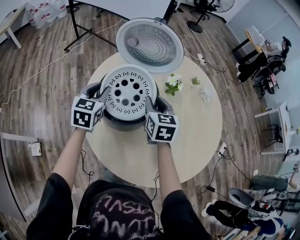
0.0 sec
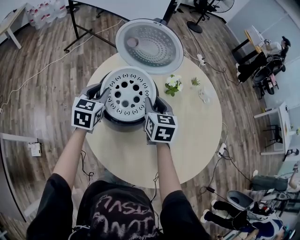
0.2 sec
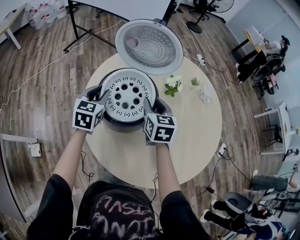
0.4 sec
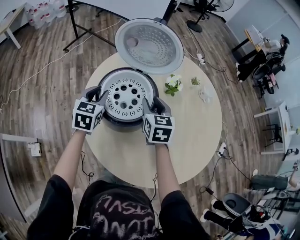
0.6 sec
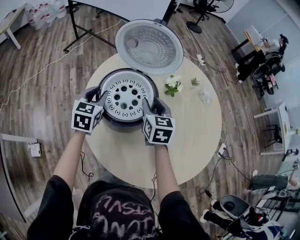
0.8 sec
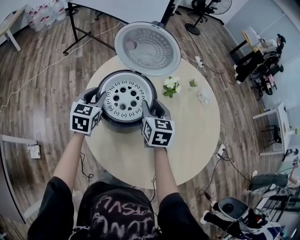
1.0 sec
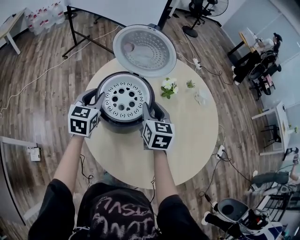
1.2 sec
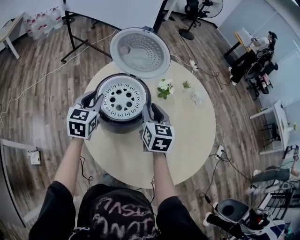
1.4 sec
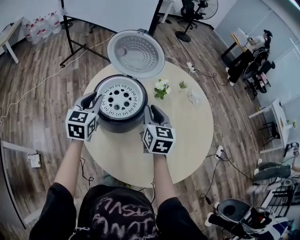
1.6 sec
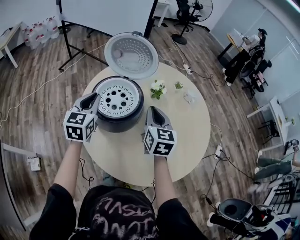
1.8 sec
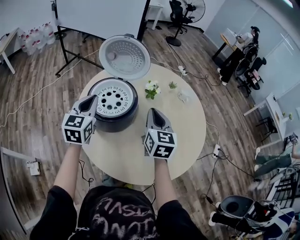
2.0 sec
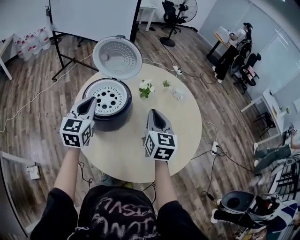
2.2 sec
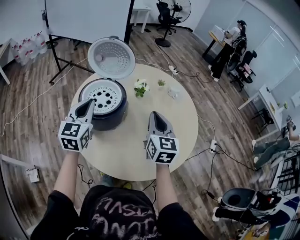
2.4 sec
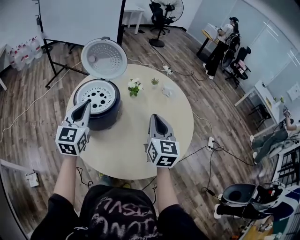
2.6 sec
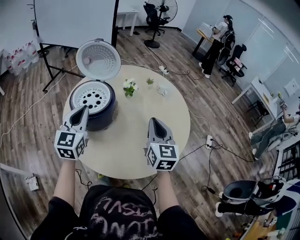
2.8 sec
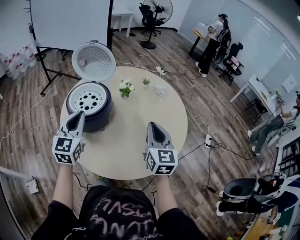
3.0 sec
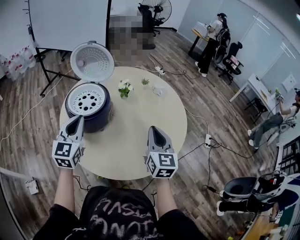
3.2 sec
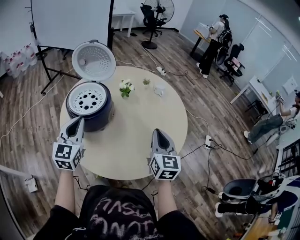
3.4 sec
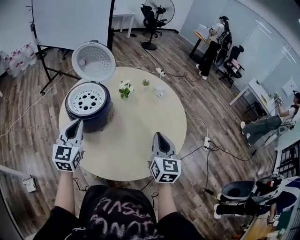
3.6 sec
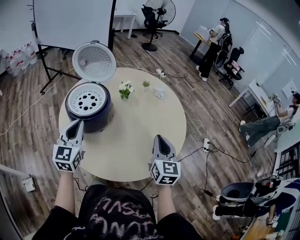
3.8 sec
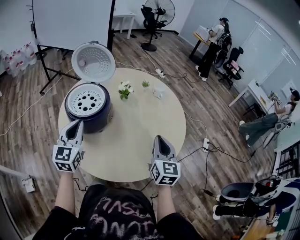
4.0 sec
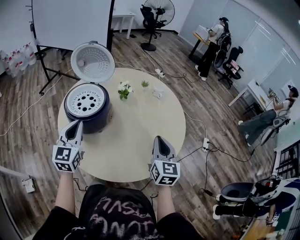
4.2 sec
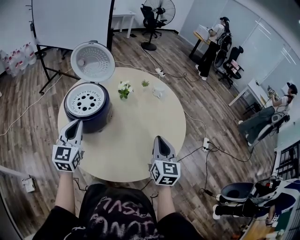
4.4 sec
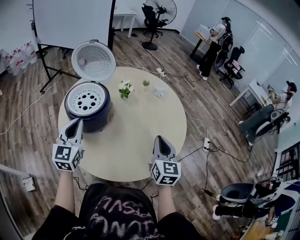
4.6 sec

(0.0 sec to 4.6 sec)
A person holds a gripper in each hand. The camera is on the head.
0.0 sec - 1.6 sec: Both grippers move upward, about 5 cm.
1.6 sec - 3.0 sec: The left gripper moves backward, to the right and upward, about 20 cm. Meanwhile the right gripper shifts approximately 25 cm to the right and backward.
3.0 sec - 4.6 sec: The right gripper shifts roughly 5 cm to the right.

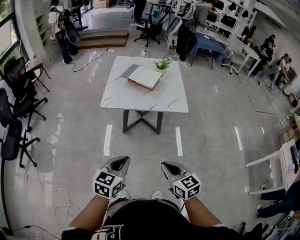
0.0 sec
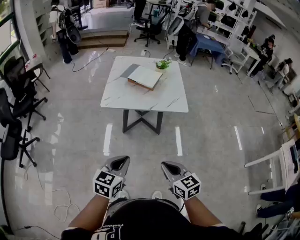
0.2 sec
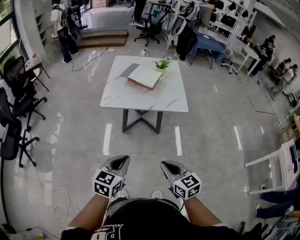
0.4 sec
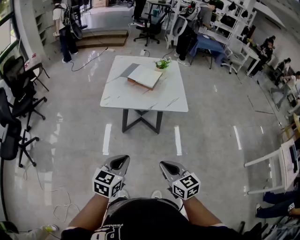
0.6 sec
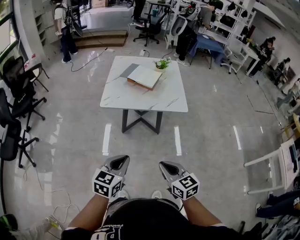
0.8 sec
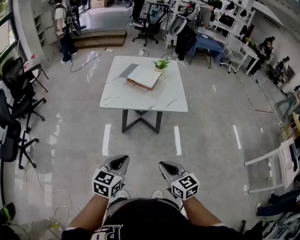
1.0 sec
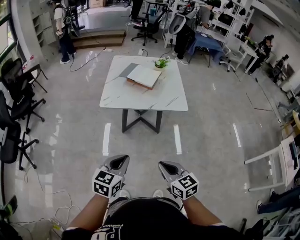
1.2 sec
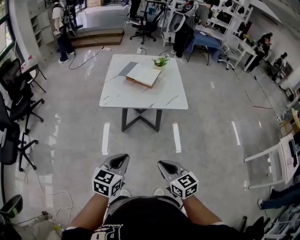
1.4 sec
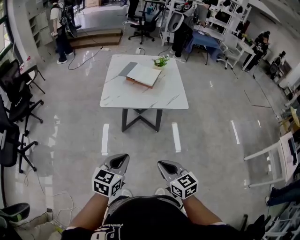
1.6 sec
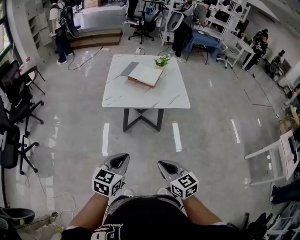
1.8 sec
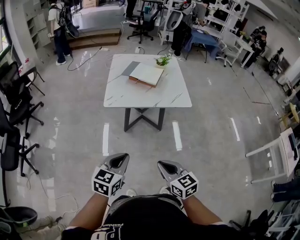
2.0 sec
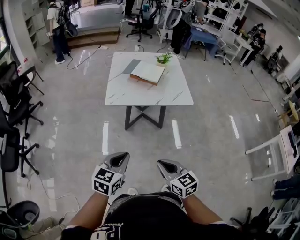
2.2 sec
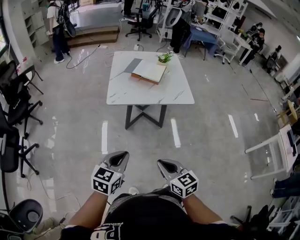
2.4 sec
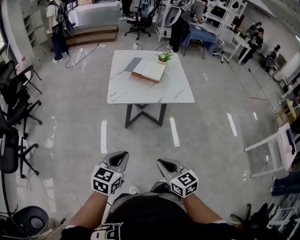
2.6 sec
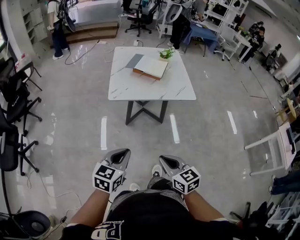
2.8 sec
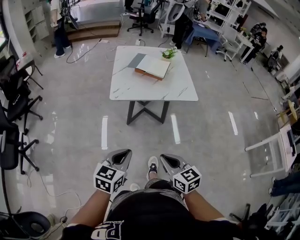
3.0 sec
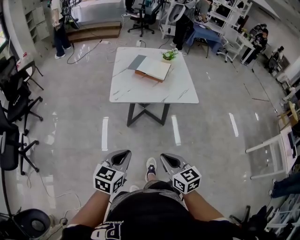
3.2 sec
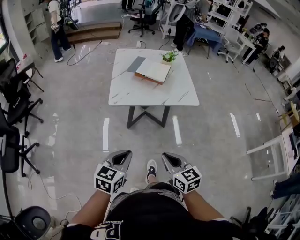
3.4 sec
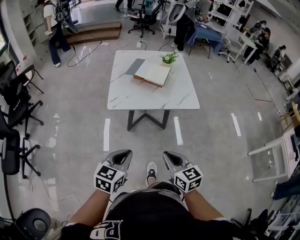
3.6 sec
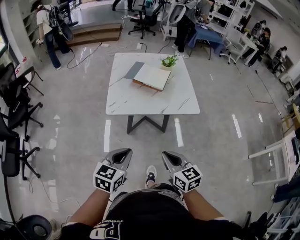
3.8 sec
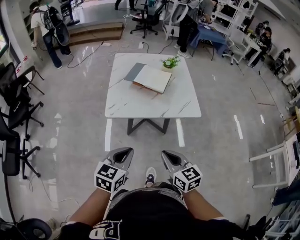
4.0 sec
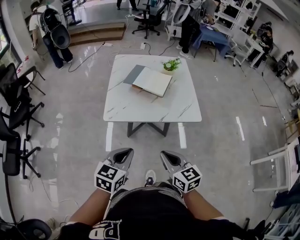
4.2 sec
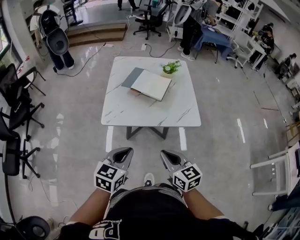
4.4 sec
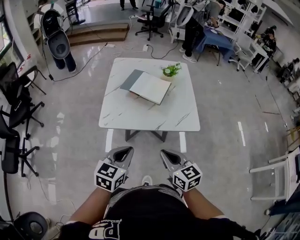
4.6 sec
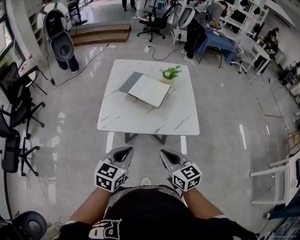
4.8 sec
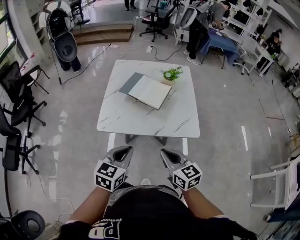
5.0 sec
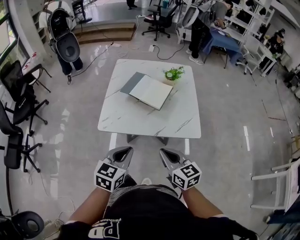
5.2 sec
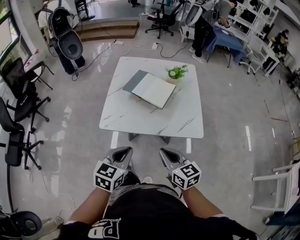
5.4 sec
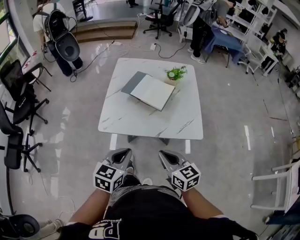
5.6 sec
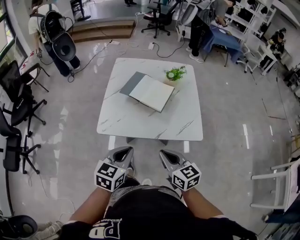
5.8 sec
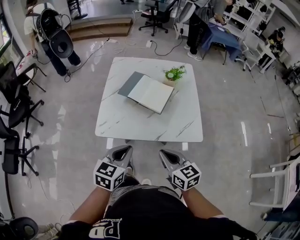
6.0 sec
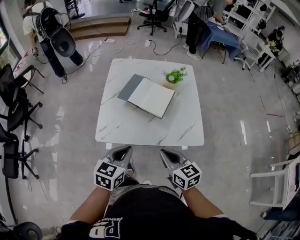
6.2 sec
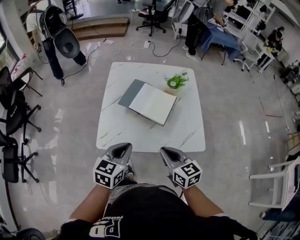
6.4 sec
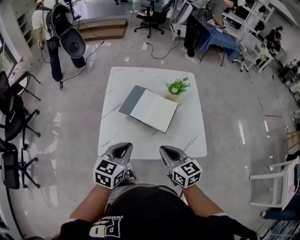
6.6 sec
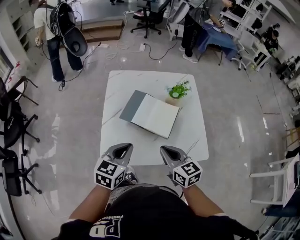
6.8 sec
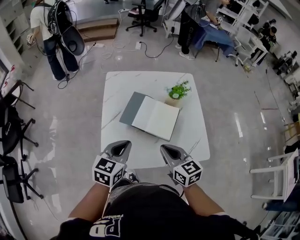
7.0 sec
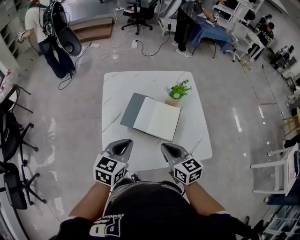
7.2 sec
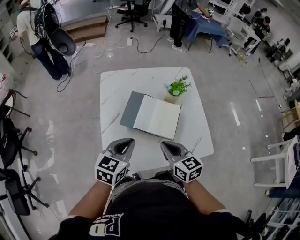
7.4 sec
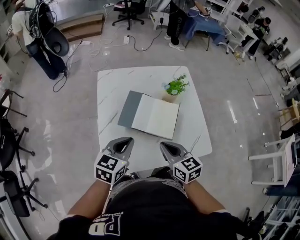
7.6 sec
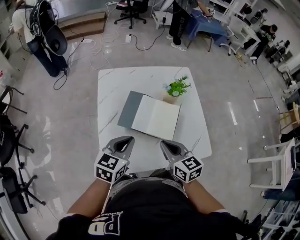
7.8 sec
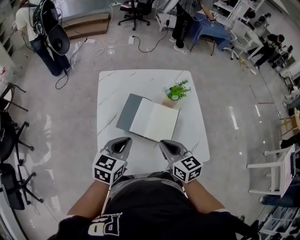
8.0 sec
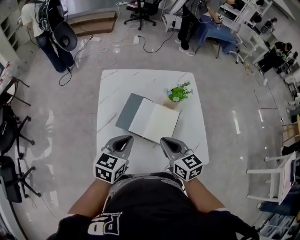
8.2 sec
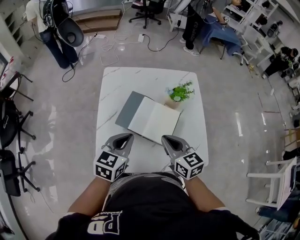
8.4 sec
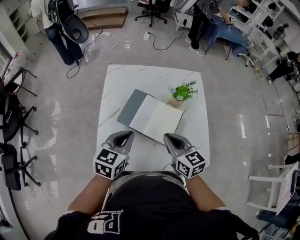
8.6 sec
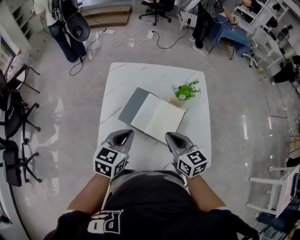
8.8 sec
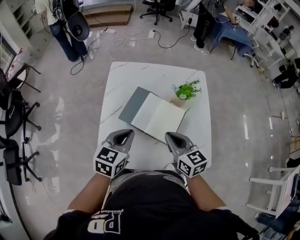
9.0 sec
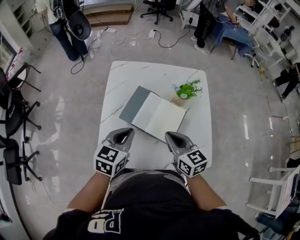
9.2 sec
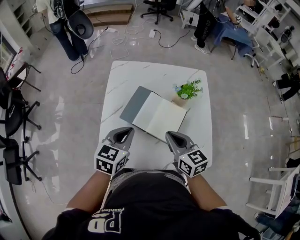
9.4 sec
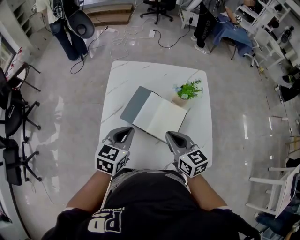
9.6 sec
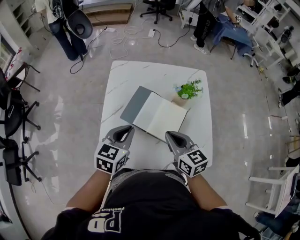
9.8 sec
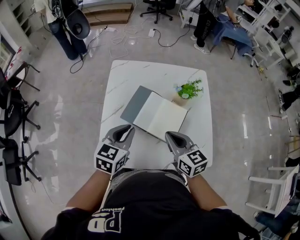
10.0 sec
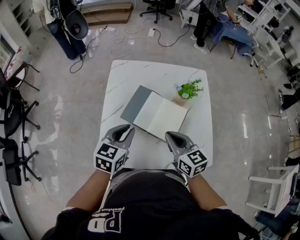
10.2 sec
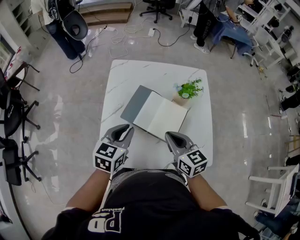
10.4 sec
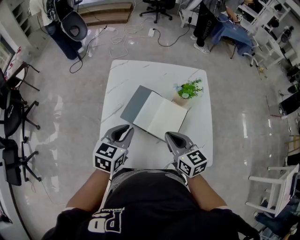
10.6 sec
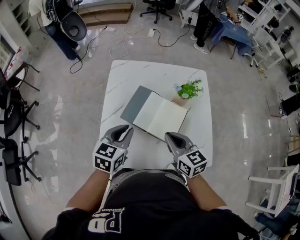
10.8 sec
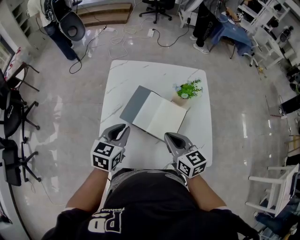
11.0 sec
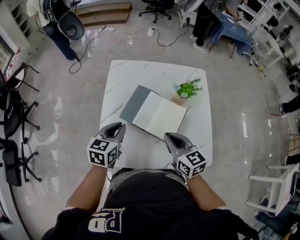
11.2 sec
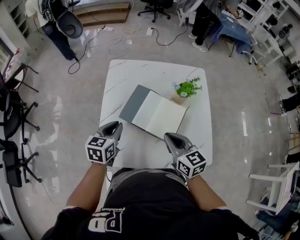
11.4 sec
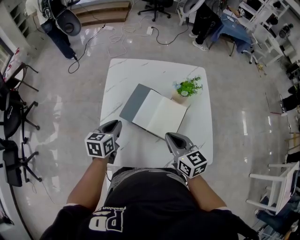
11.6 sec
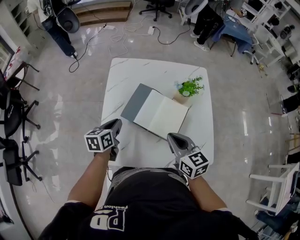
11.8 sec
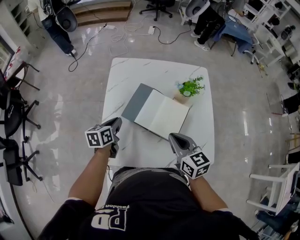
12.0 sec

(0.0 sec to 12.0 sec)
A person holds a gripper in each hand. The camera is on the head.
0.0 sec - 1.6 sec: There are only small adjustments of the grippers.
1.6 sec - 3.0 sec: The grippers both shift to the left by about 10 cm.
3.0 sec - 4.4 sec: Both grippers move forward, about 20 cm.
4.4 sec - 6.0 sec: The two grippers go some 10 cm forward.
6.0 sec - 7.6 sec: Both grippers move forward, some 25 cm.
7.6 sec - 9.0 sec: The right gripper moves forward, roughly 5 cm.
9.0 sec - 10.4 sec: The grippers make only small movements.
10.4 sec - 12.0 sec: The left gripper heads downward, to the left and forward, covering approximately 15 cm, and swivels some 30 degrees.

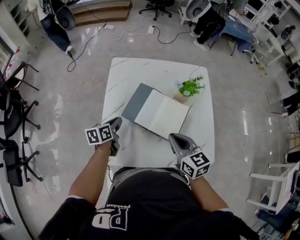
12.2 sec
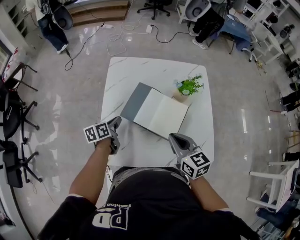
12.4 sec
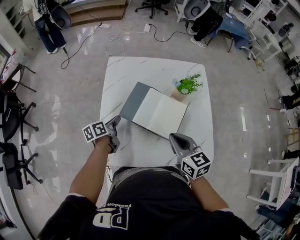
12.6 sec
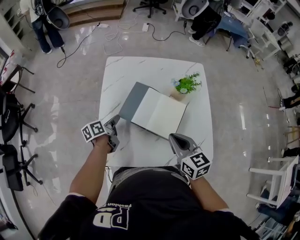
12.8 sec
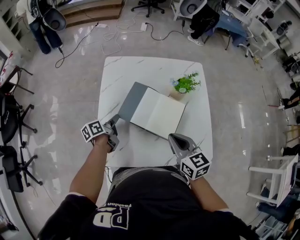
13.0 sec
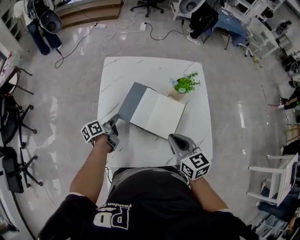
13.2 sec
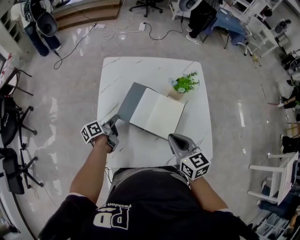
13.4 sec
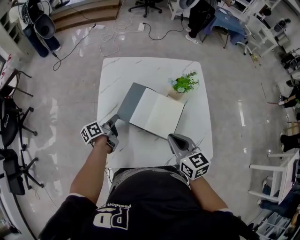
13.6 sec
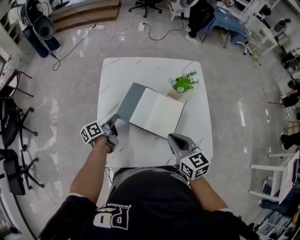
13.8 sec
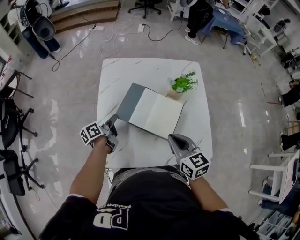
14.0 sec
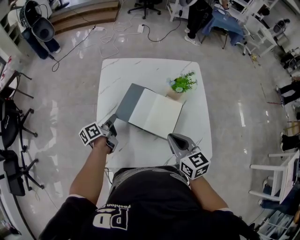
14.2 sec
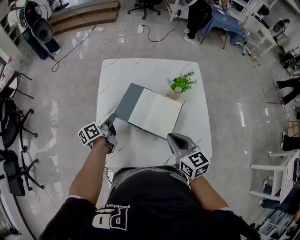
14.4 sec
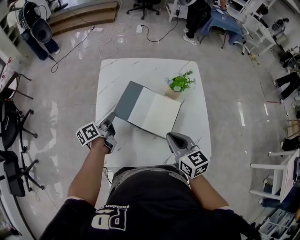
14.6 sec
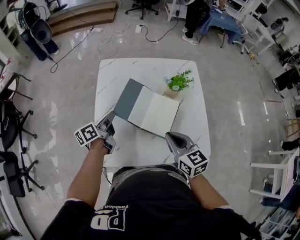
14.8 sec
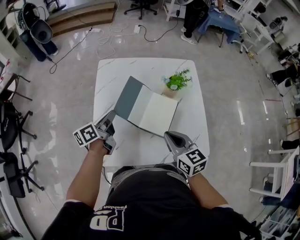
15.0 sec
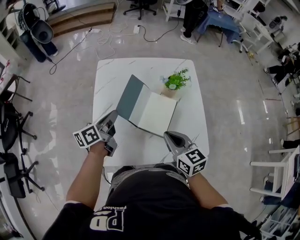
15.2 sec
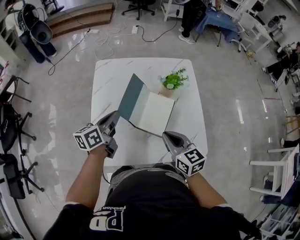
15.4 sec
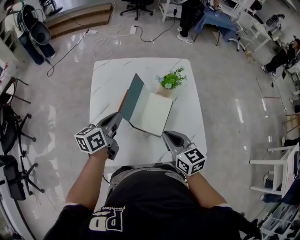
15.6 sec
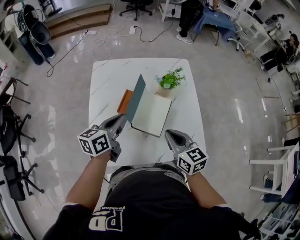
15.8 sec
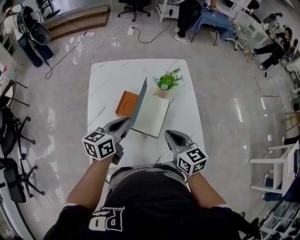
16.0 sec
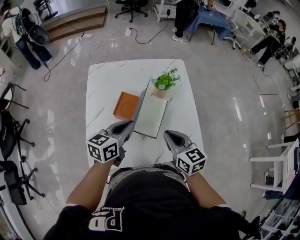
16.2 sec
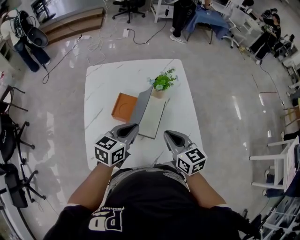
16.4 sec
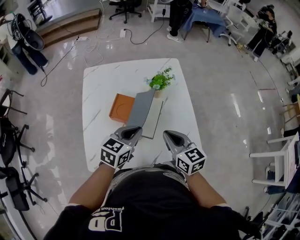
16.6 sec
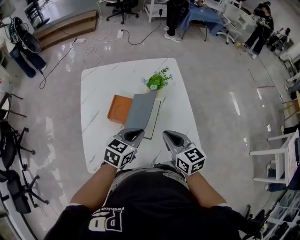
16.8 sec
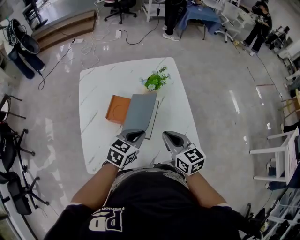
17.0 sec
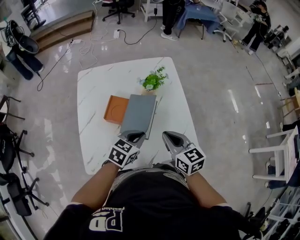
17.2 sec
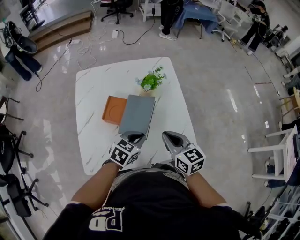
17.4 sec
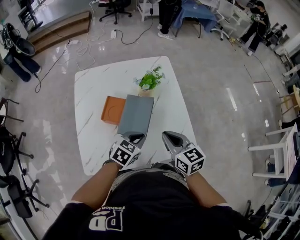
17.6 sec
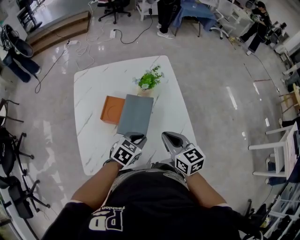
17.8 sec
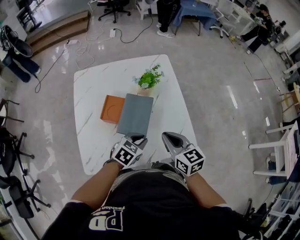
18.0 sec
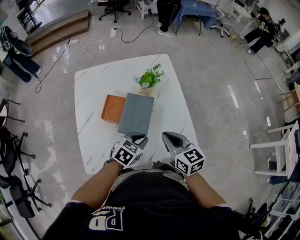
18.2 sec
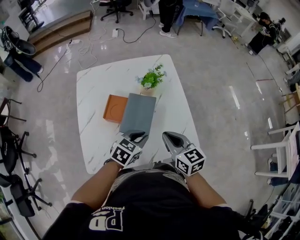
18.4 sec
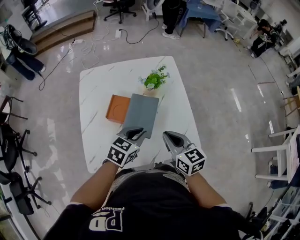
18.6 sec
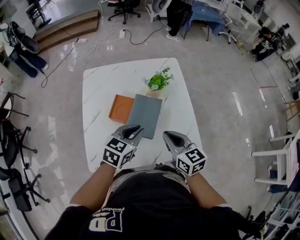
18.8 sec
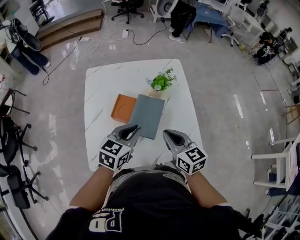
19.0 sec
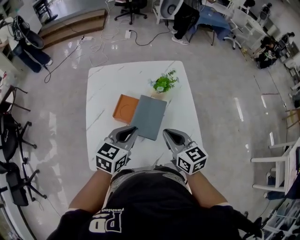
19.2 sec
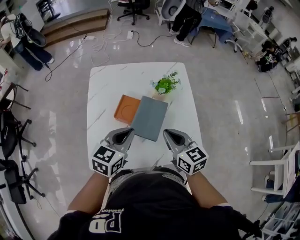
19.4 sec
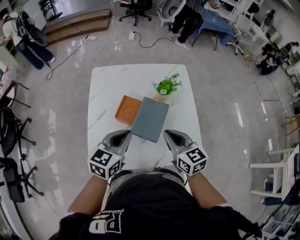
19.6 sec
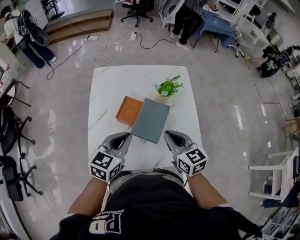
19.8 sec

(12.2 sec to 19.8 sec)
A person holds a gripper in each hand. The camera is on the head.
12.2 sec - 13.8 sec: The left gripper rotates about 30 degrees.
13.8 sec - 15.2 sec: The left gripper heads upward and to the right, covering approximately 15 cm, and changes its angle by approximately 20 degrees.
15.2 sec - 16.8 sec: The left gripper heads to the right, covering approximately 20 cm, and rotates around the line of its fingers by some 40 degrees, clockwise from behind. Meanwhile the right gripper moves to the right, approximately 5 cm.
16.8 sec - 18.2 sec: The left gripper travels downward and to the right by some 10 cm.
18.2 sec - 19.8 sec: The right gripper shifts about 5 cm to the left; the left gripper moves to the left and upward, some 20 cm, and changes its angle by some 30 degrees.
